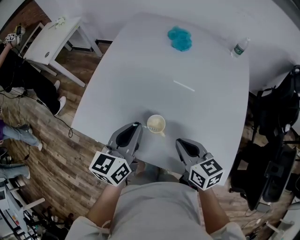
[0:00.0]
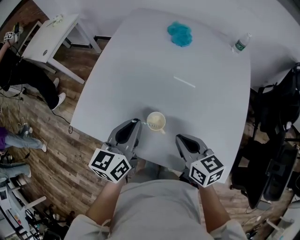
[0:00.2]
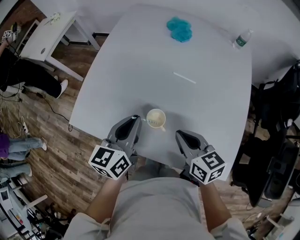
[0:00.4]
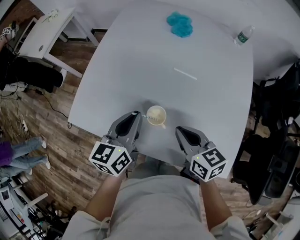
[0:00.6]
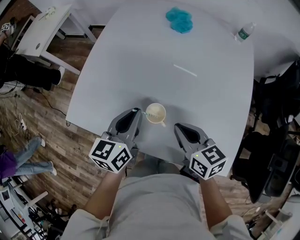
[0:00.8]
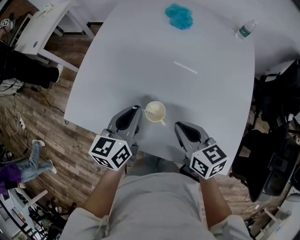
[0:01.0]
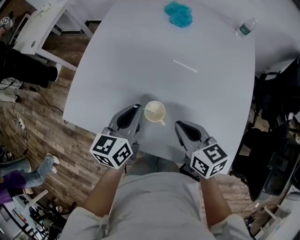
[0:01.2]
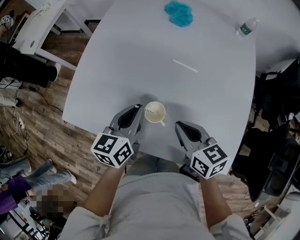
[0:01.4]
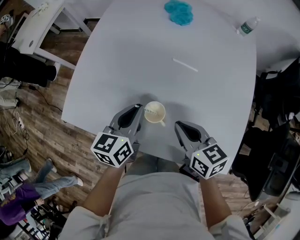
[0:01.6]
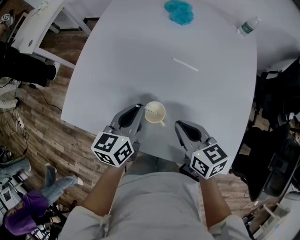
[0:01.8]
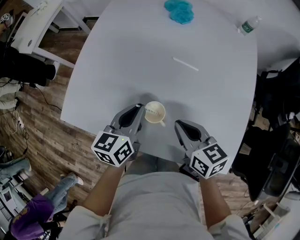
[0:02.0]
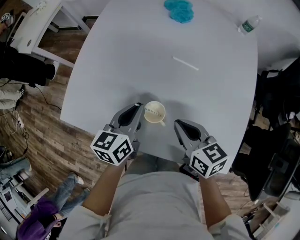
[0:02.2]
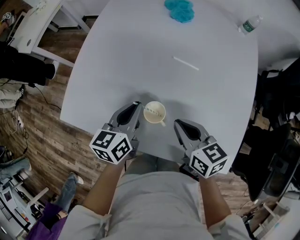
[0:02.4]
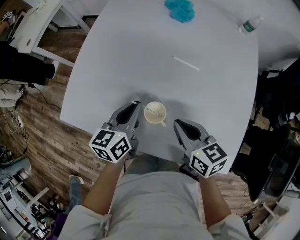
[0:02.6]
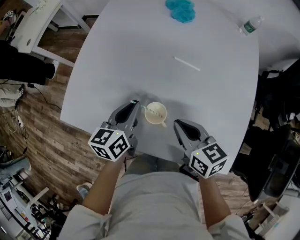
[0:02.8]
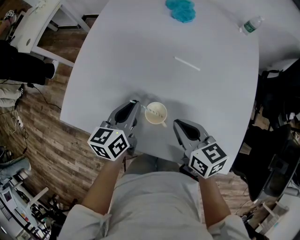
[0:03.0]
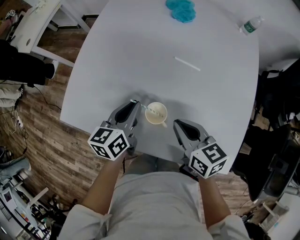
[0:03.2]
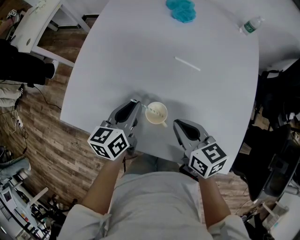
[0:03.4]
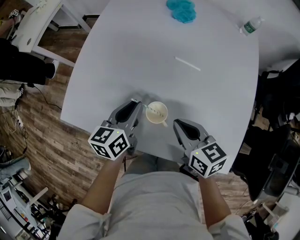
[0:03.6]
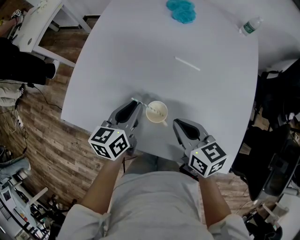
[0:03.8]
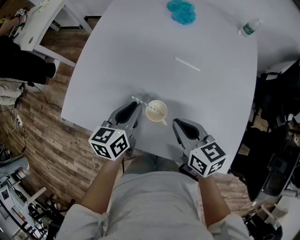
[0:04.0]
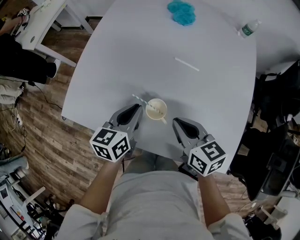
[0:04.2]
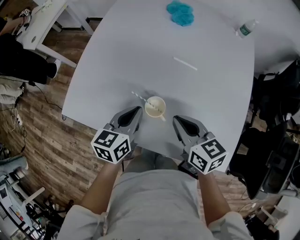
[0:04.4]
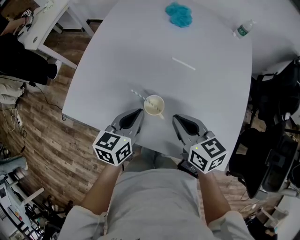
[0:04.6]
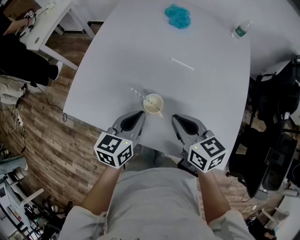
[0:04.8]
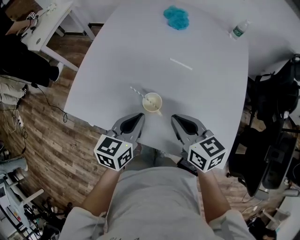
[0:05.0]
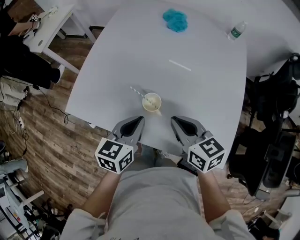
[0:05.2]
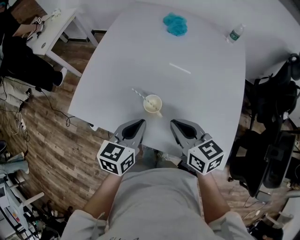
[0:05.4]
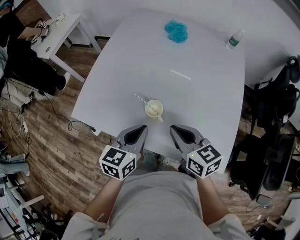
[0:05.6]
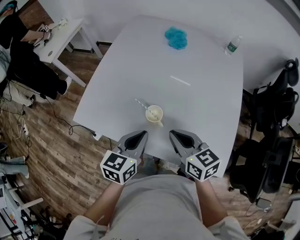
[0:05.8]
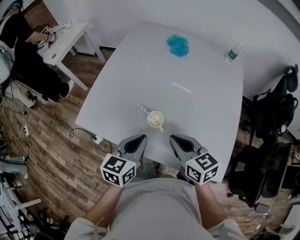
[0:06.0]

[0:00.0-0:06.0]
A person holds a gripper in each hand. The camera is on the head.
0:00.0 to 0:01.6: The left gripper travels downward by about 10 cm.
0:01.6 to 0:03.0: There are only small adjustments of the grippers.
0:03.0 to 0:04.4: The left gripper shifts by about 5 cm.
0:04.4 to 0:06.0: The two grippers go roughly 10 cm backward and upward.

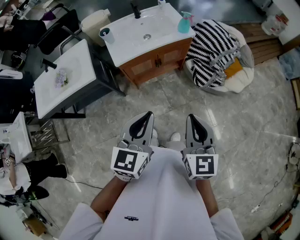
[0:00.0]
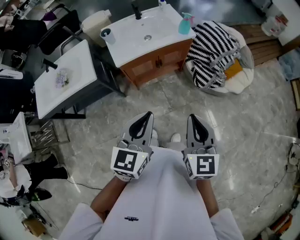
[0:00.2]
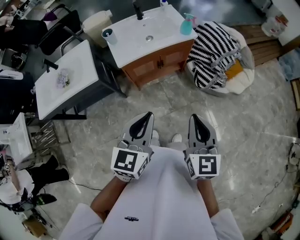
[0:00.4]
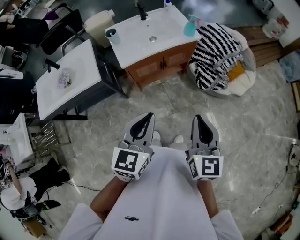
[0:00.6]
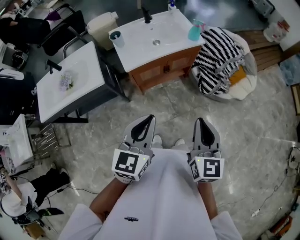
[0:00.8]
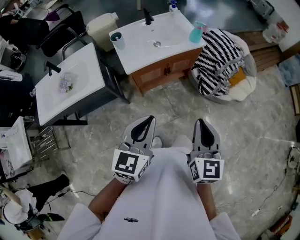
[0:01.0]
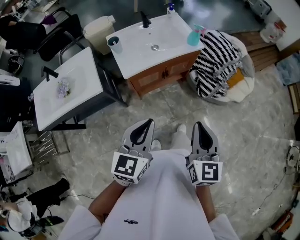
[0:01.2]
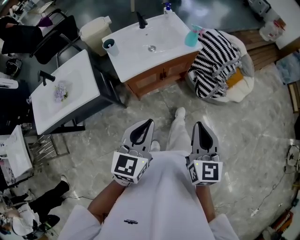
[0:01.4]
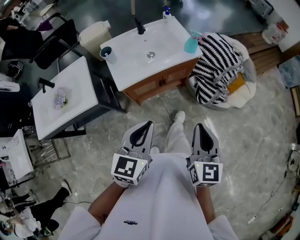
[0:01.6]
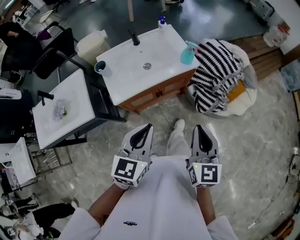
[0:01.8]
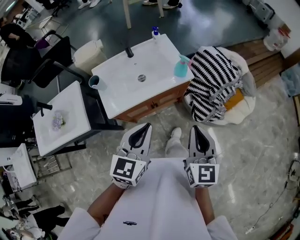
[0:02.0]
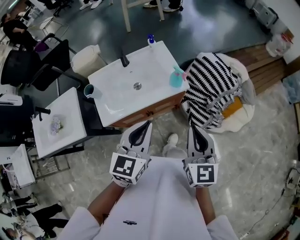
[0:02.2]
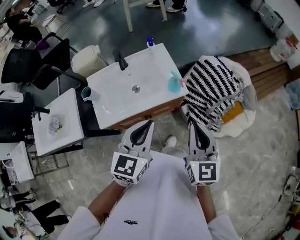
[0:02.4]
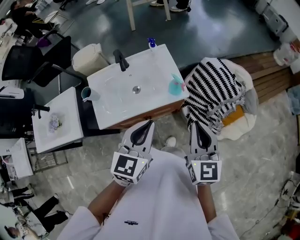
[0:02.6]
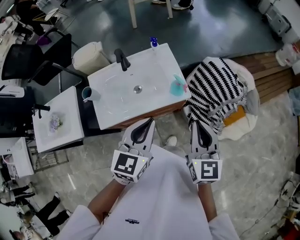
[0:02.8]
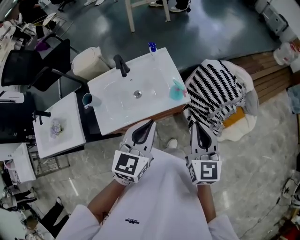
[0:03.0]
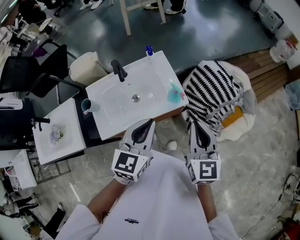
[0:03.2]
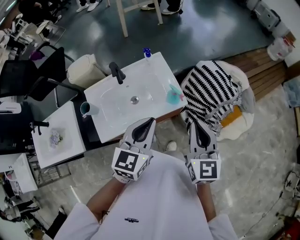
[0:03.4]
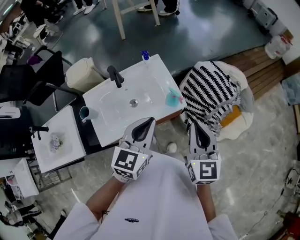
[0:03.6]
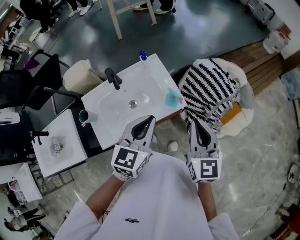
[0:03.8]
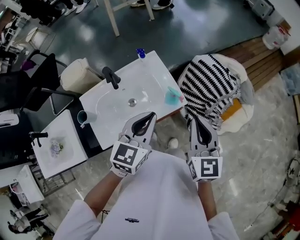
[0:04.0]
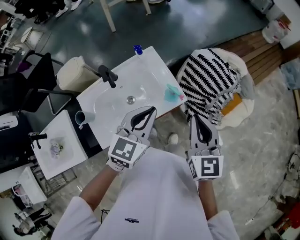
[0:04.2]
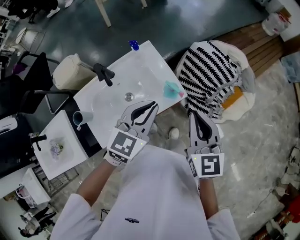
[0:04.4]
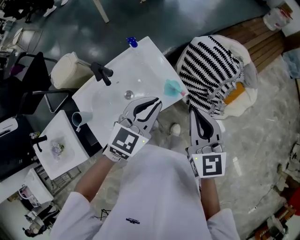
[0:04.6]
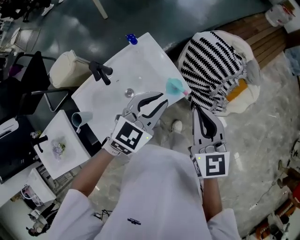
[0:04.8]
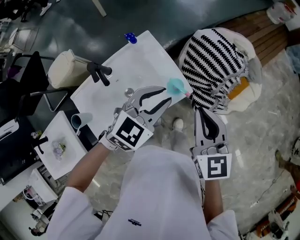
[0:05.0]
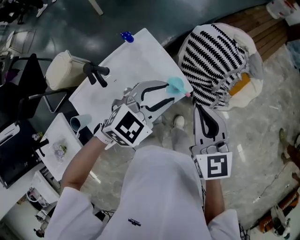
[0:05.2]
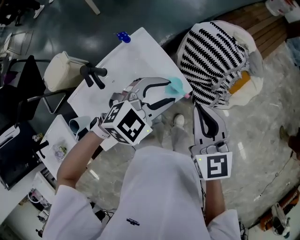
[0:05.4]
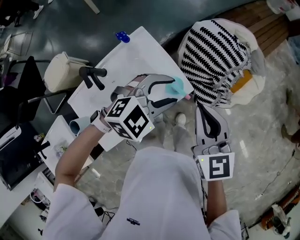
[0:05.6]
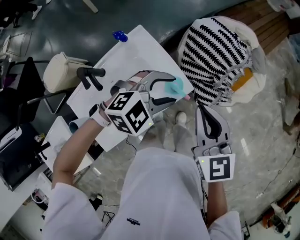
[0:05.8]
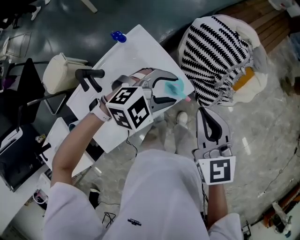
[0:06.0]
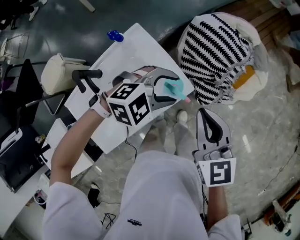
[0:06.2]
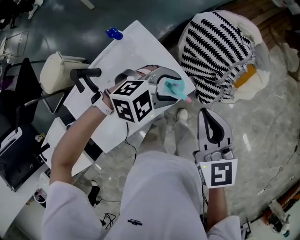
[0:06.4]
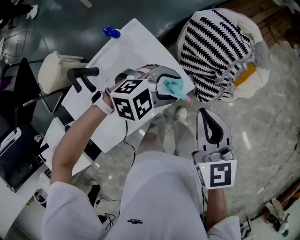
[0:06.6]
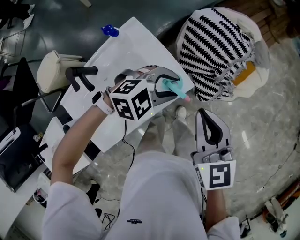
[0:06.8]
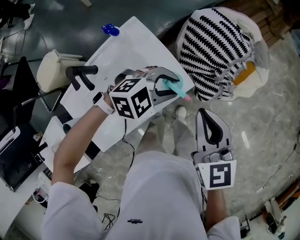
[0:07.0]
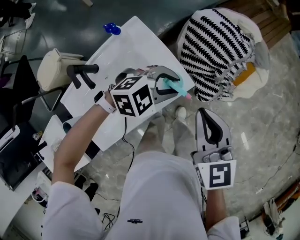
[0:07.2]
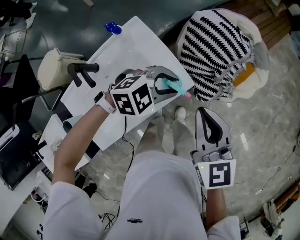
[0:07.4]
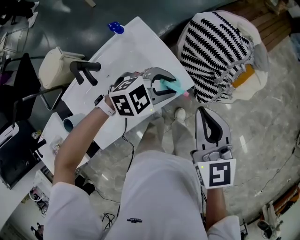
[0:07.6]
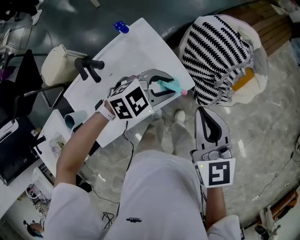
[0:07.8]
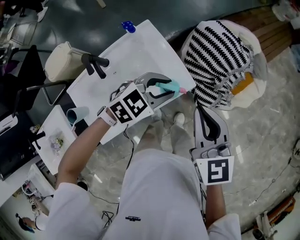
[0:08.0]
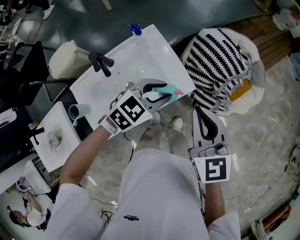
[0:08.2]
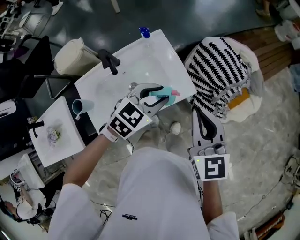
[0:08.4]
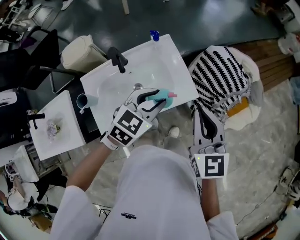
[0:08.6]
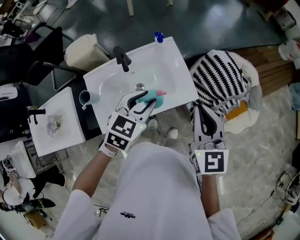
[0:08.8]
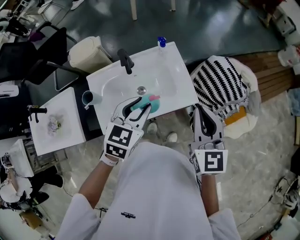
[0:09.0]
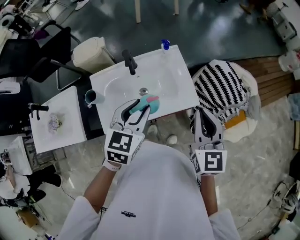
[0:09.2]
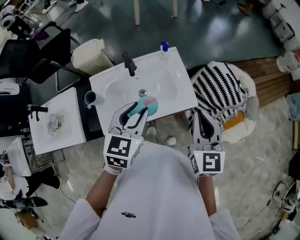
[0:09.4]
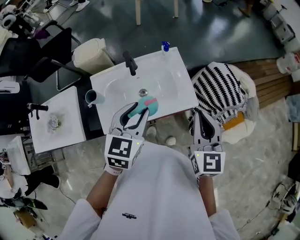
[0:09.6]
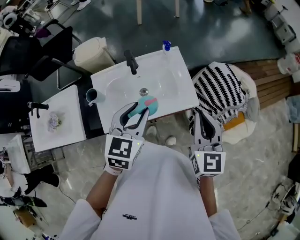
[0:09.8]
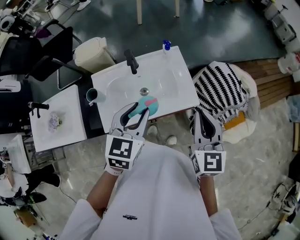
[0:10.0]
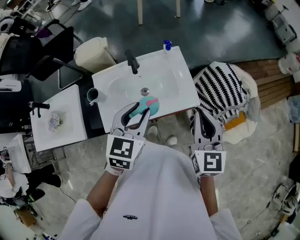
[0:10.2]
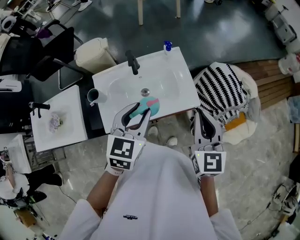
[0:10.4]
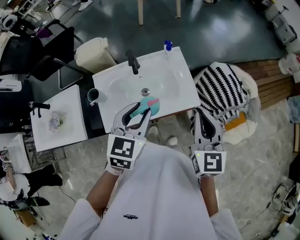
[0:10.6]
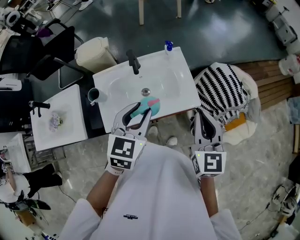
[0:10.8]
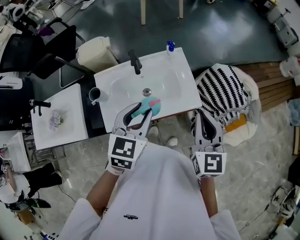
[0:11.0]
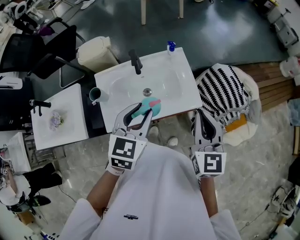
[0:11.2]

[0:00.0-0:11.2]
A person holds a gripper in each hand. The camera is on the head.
0:00.0 to 0:01.6: The left gripper moves forward and to the left, roughly 15 cm. Meanwhile the right gripper is displaced forward by approximately 10 cm.
0:01.6 to 0:03.2: Both grippers travel together forward, approximately 35 cm.
0:03.2 to 0:04.8: The right gripper travels forward by about 10 cm; the left gripper is displaced forward and downward by roughly 15 cm, and turns by roughly 40 degrees.
0:04.8 to 0:06.4: The left gripper goes approximately 15 cm downward and forward, rotates approximately 50 degrees, and opens; the right gripper heads downward, covering some 5 cm.
0:06.4 to 0:08.0: The left gripper moves approximately 5 cm, changes its angle by roughly 30 degrees, and closes its fingers; the right gripper changes place by approximately 5 cm.
0:08.0 to 0:09.6: The right gripper goes about 5 cm upward. Meanwhile the left gripper changes place by approximately 25 cm, and swivels about 60 degrees.
0:09.6 to 0:11.2: The grippers make only small movements.

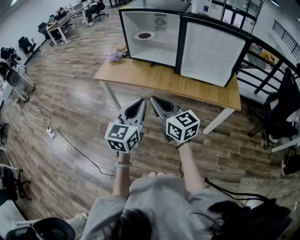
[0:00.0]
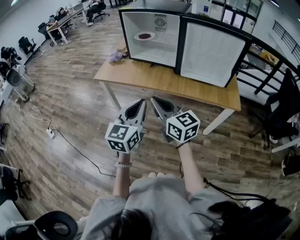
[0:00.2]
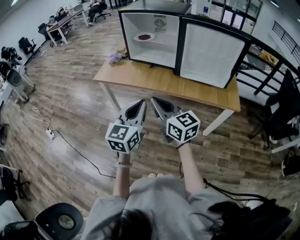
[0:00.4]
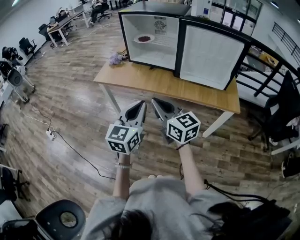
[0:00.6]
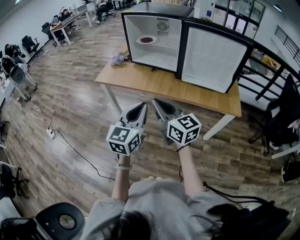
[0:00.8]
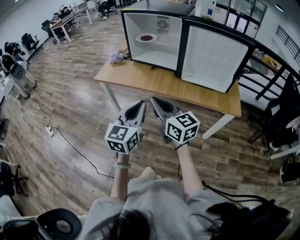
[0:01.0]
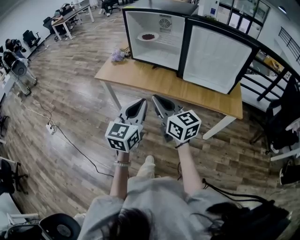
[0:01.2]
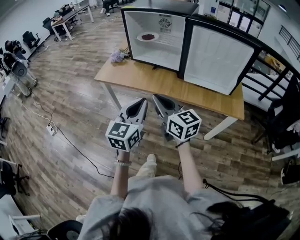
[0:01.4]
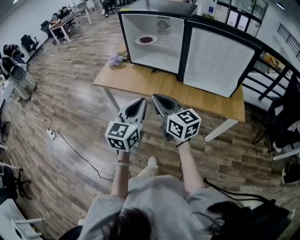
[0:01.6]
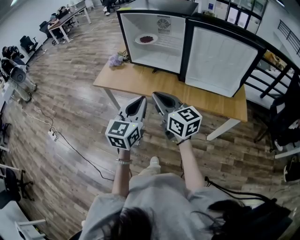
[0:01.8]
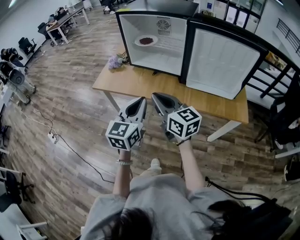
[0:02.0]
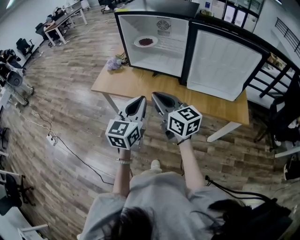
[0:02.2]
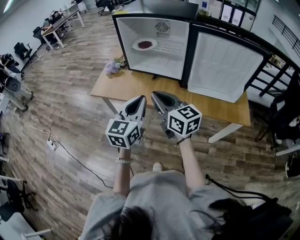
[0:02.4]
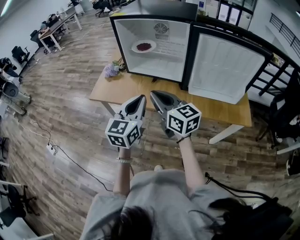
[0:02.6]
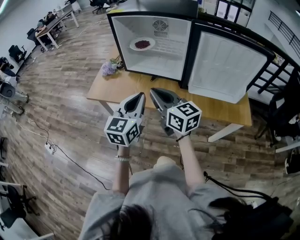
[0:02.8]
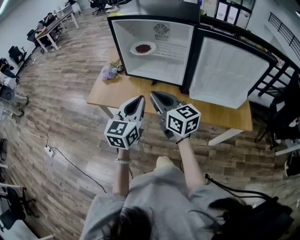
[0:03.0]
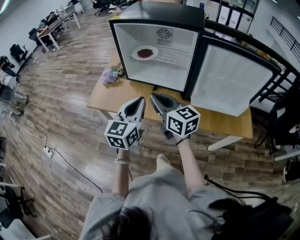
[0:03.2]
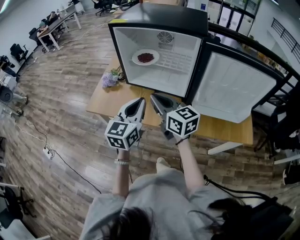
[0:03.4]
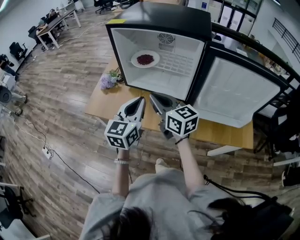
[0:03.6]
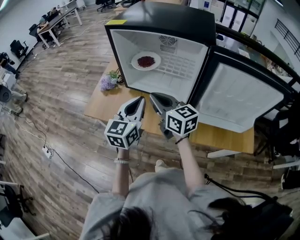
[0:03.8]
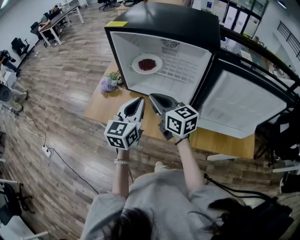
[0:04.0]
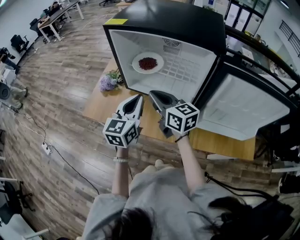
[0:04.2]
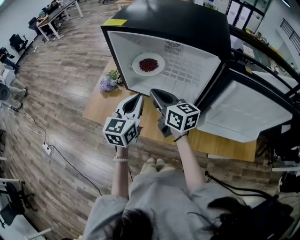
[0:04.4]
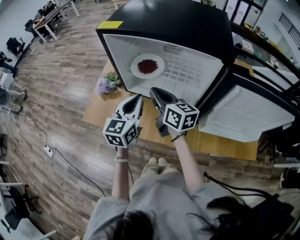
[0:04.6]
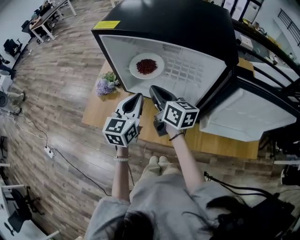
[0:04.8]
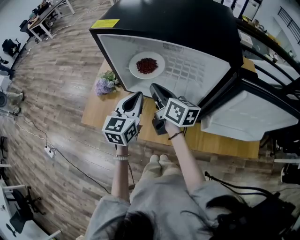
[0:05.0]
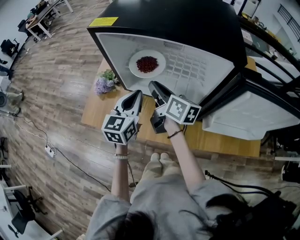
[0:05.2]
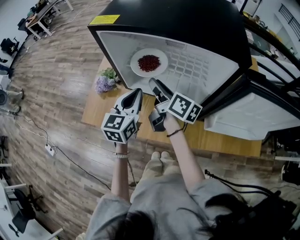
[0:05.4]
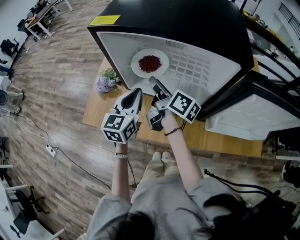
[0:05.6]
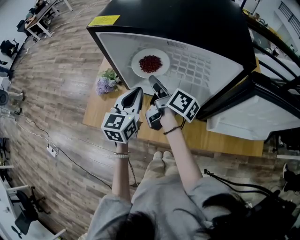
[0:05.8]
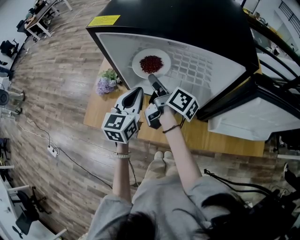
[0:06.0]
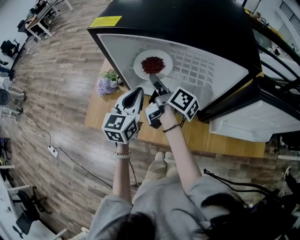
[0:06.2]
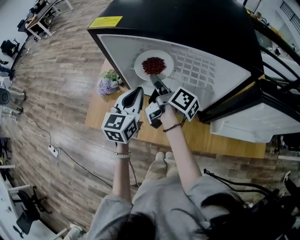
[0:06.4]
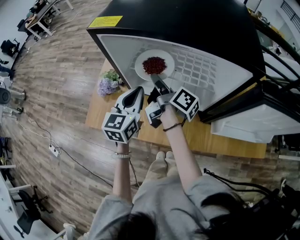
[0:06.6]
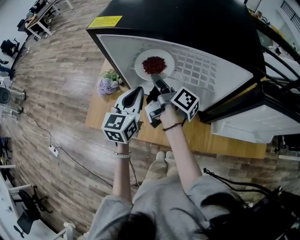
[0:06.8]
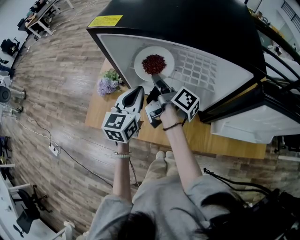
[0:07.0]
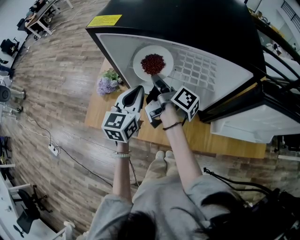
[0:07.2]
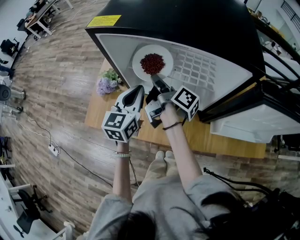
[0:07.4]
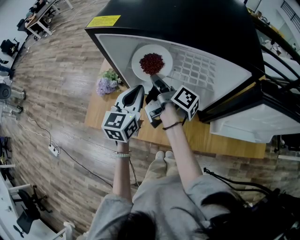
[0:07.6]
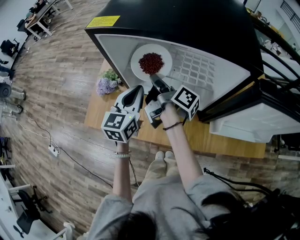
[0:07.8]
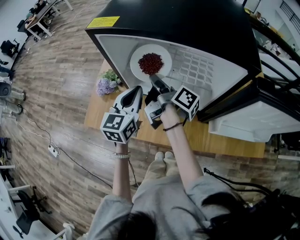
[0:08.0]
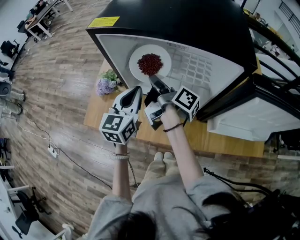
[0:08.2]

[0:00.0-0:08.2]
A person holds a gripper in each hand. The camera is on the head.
0:00.0 to 0:01.6: The grippers both shift forward by some 10 cm.
0:01.6 to 0:03.2: The two grippers go about 20 cm forward.
0:03.2 to 0:05.0: The grippers both shift forward by roughly 20 cm. The right gripper swivels approximately 30 degrees.
0:05.0 to 0:06.6: The right gripper shifts by roughly 5 cm, and twists some 40 degrees clockwise, seen from behind.
0:06.6 to 0:08.2: There are only small adjustments of the grippers.
